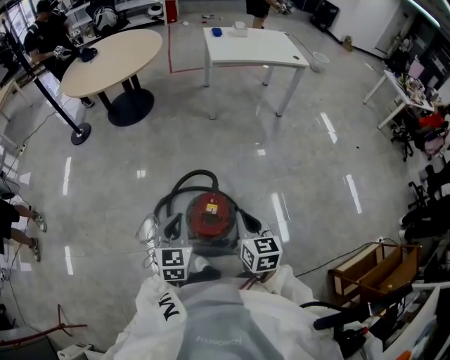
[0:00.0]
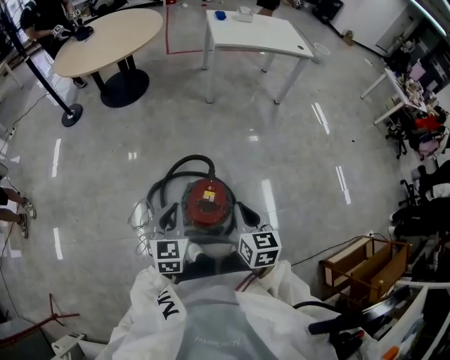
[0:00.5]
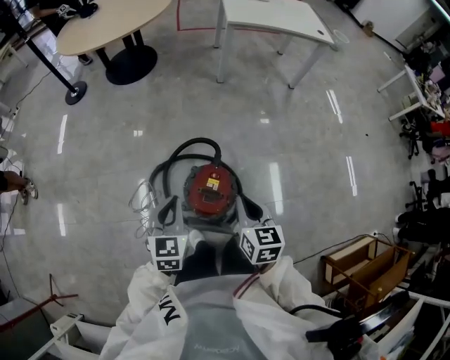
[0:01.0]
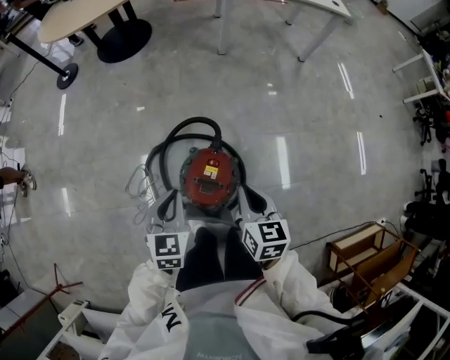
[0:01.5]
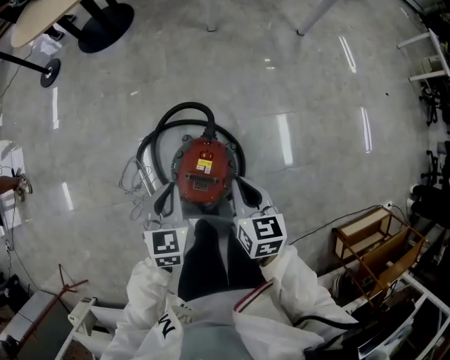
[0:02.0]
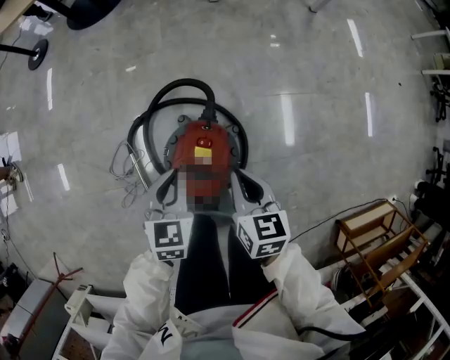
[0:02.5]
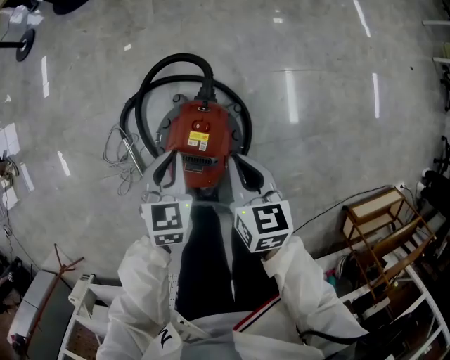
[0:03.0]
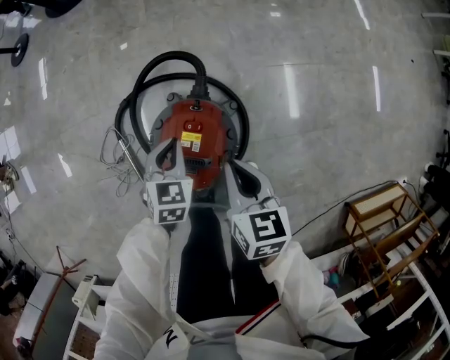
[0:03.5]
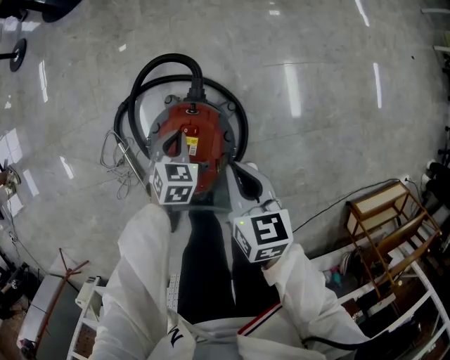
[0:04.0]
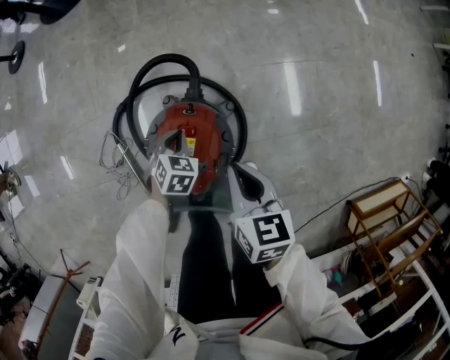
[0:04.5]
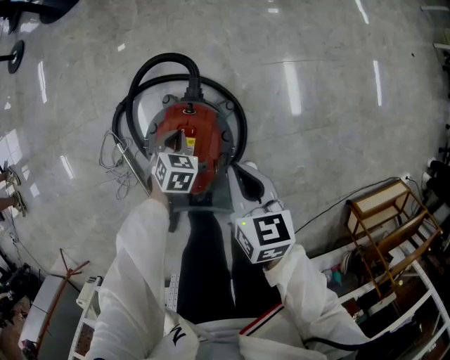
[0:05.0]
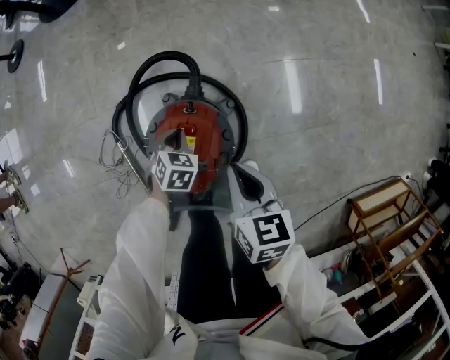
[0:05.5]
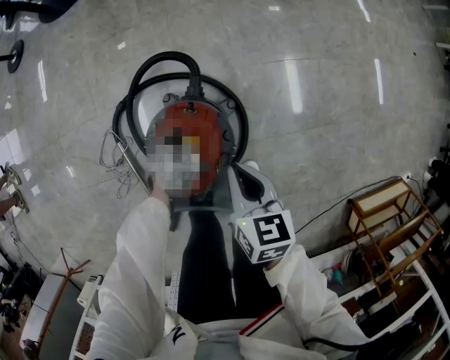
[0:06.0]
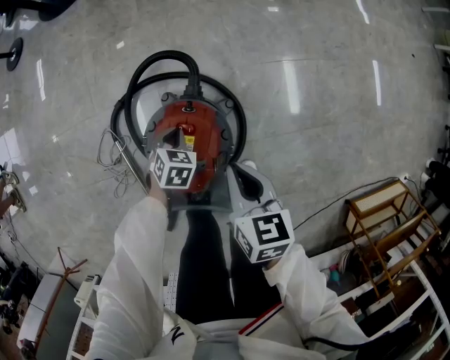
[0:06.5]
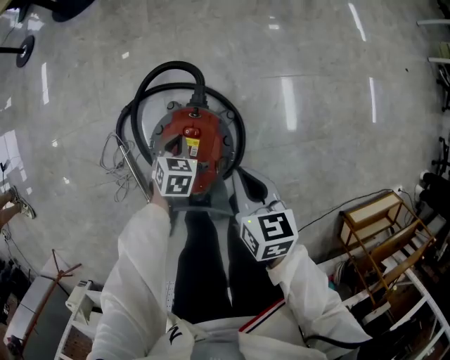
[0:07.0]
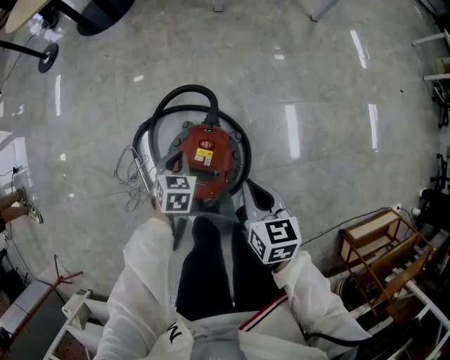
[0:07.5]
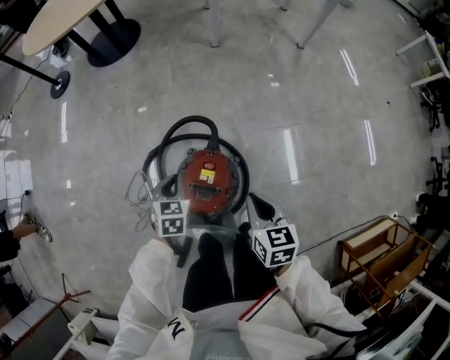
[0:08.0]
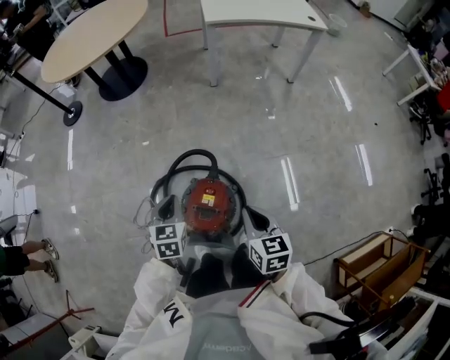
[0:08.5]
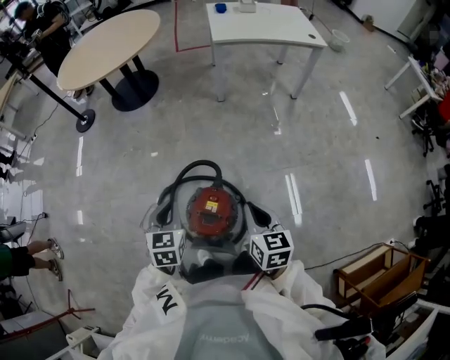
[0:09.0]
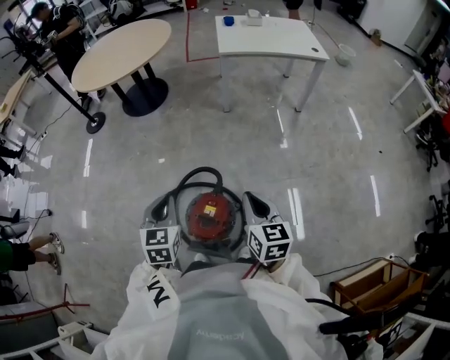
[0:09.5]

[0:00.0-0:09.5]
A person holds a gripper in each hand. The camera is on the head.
0:00.0 to 0:02.0: The two grippers go about 15 cm downward and forward.
0:02.0 to 0:04.0: The left gripper moves downward, some 25 cm, and rotates some 20 degrees. The right gripper moves downward, approximately 10 cm.
0:04.0 to 0:05.5: The left gripper heads downward, covering some 5 cm.
0:05.5 to 0:07.5: The right gripper travels upward by some 5 cm; the left gripper heads upward, covering roughly 10 cm.
0:07.5 to 0:09.5: The left gripper heads upward, covering roughly 35 cm, and swivels roughly 30 degrees, while the right gripper heads upward, covering roughly 25 cm, and changes its angle by some 20 degrees.

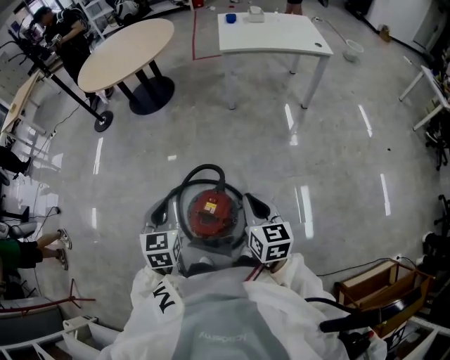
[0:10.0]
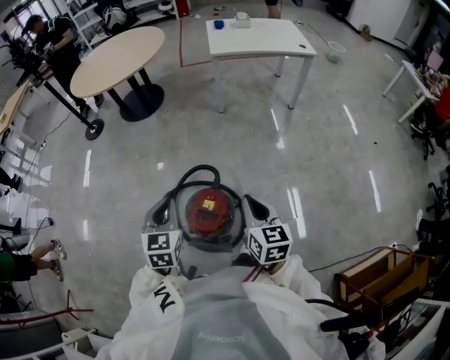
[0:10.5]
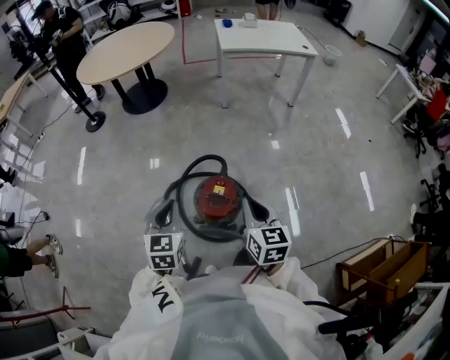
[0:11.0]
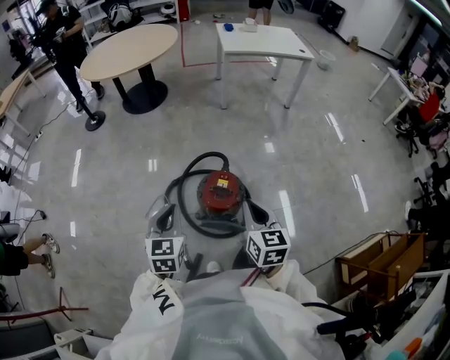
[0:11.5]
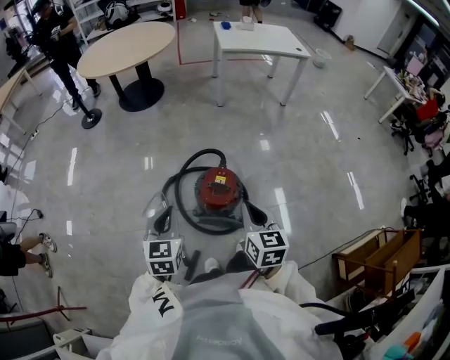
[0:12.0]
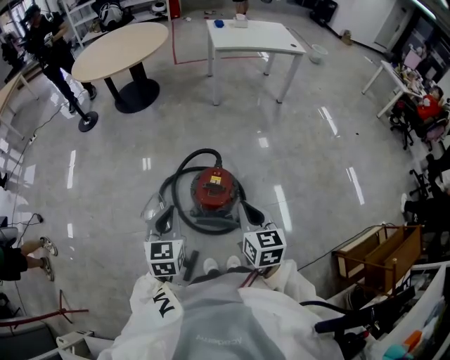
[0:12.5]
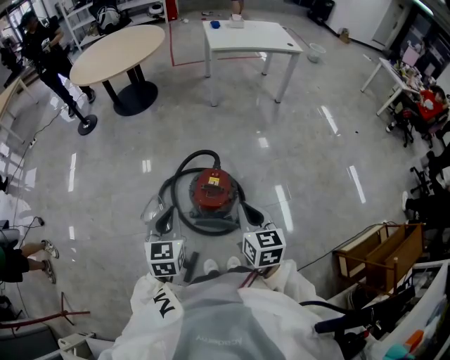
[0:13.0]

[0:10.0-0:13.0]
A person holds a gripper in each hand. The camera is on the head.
0:10.0 to 0:11.5: The grippers both shift backward and to the left by some 20 cm.
0:11.5 to 0:13.0: The grippers make only small movements.

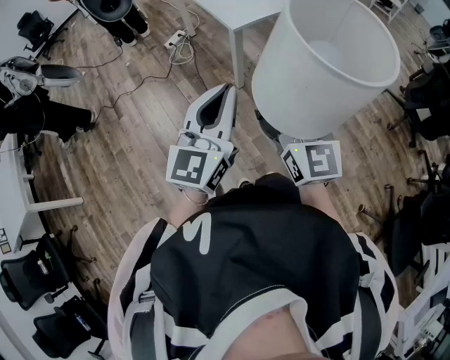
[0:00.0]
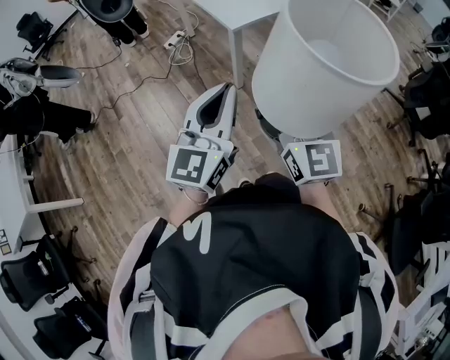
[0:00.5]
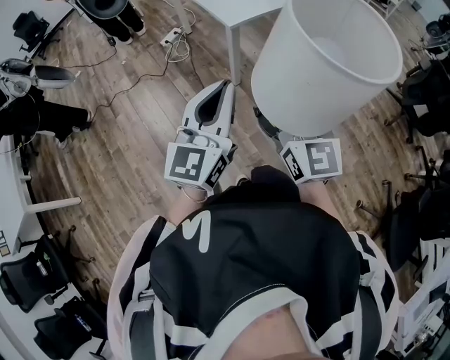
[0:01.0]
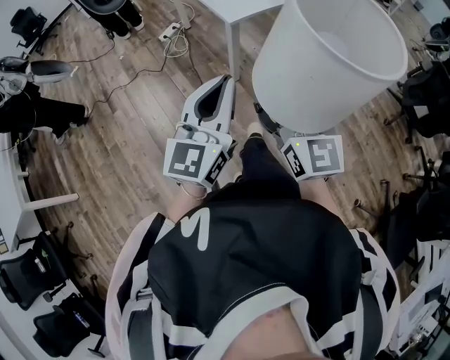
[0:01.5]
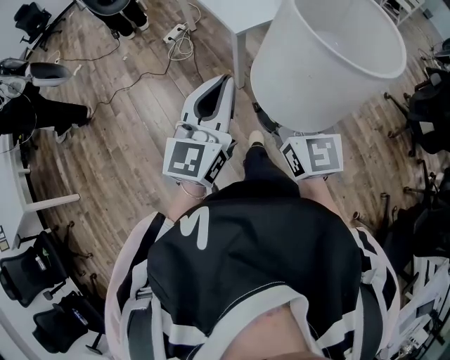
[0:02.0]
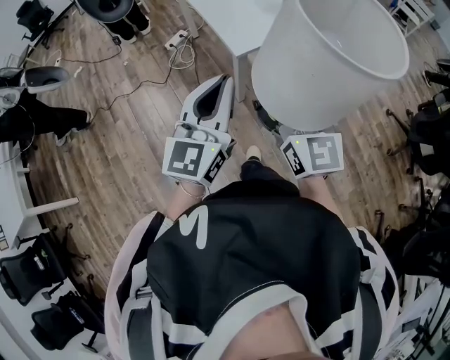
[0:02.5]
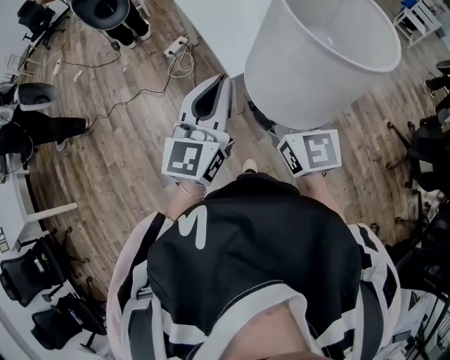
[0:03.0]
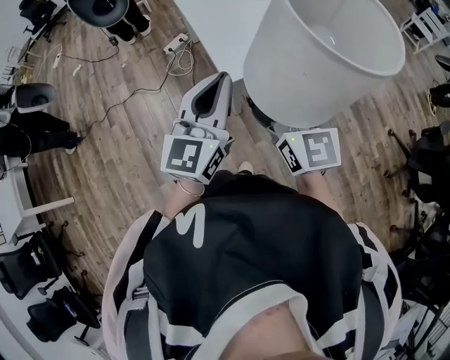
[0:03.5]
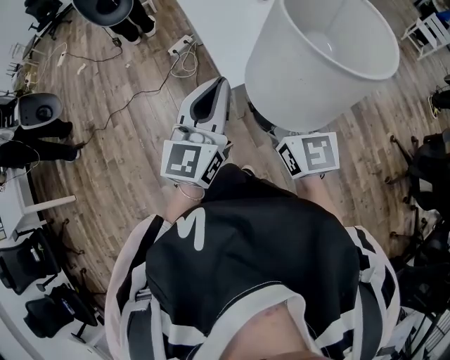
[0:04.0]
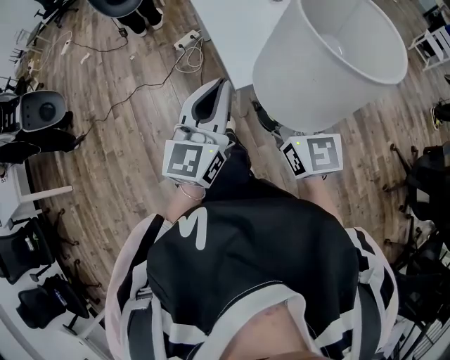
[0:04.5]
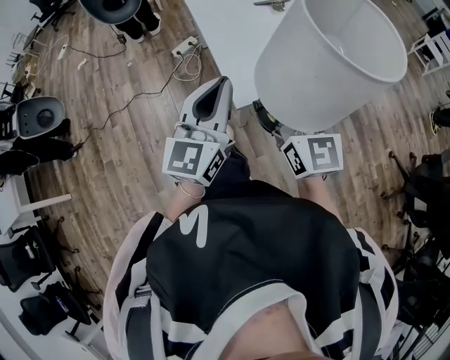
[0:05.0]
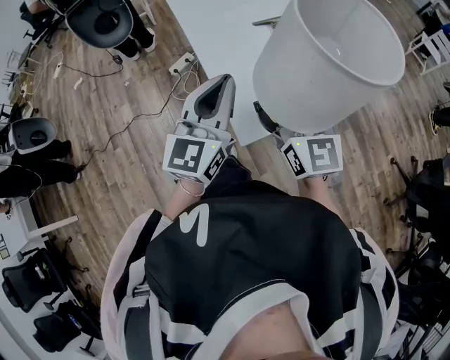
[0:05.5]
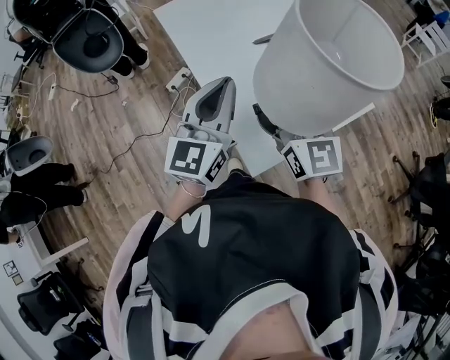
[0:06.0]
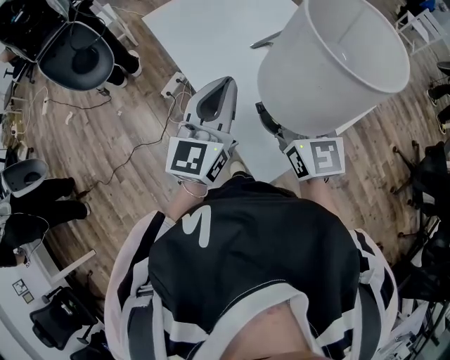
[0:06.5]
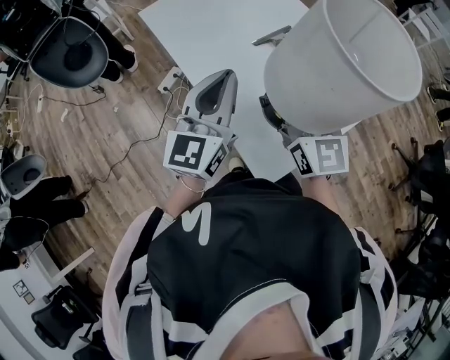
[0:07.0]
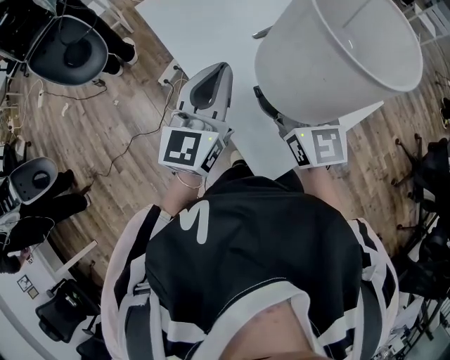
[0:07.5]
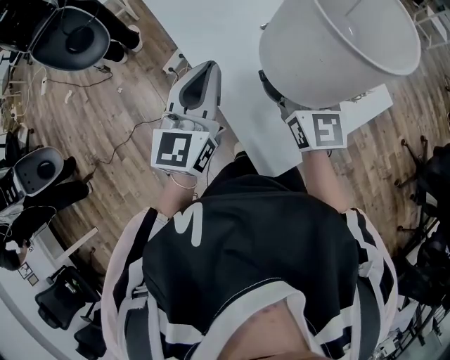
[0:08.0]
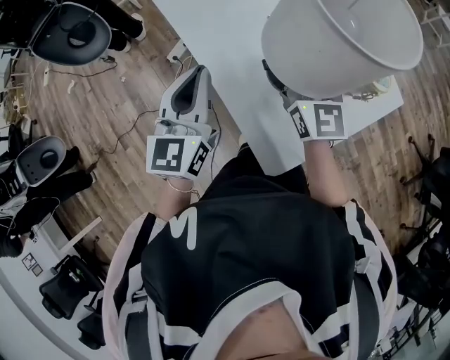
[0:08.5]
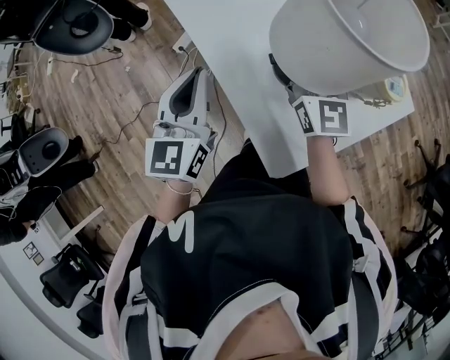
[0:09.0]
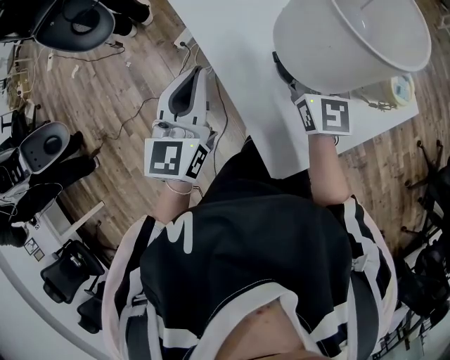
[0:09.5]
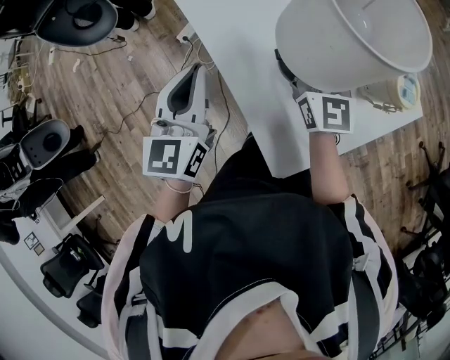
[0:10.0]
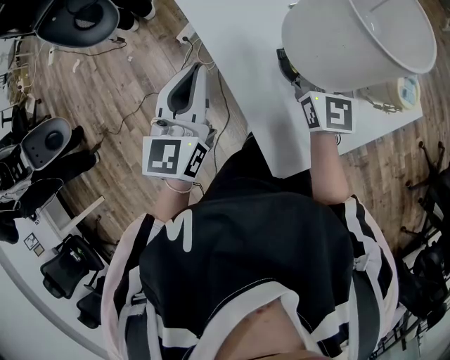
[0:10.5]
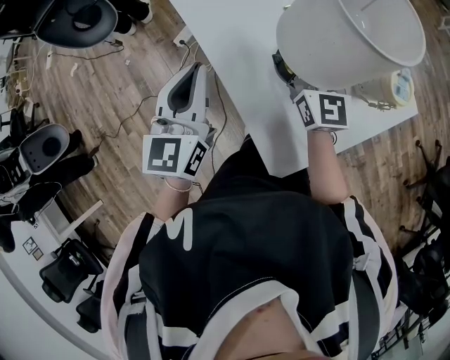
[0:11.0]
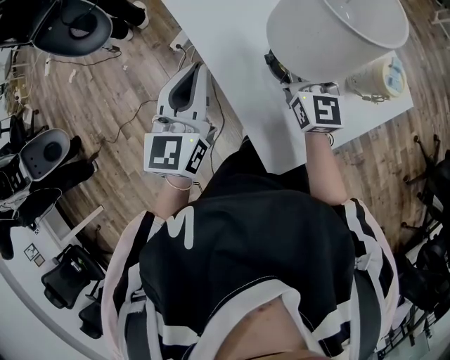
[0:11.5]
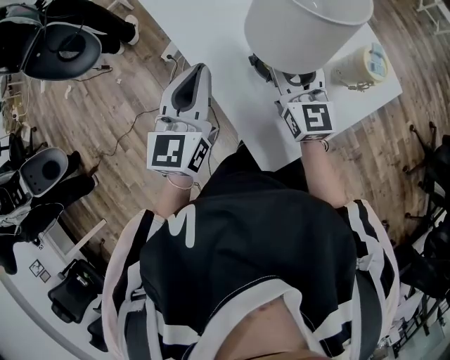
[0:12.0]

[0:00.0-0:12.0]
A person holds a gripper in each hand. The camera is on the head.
0:00.0 to 0:02.0: The two grippers go roughly 10 cm forward.
0:02.0 to 0:04.0: The two grippers go about 25 cm forward.
0:04.0 to 0:06.0: The grippers both shift forward by some 30 cm.
0:06.0 to 0:08.0: Both grippers move forward, approximately 10 cm.
0:08.0 to 0:10.0: The right gripper shifts roughly 10 cm downward and forward; the left gripper travels downward and to the left by approximately 10 cm.
0:10.0 to 0:12.0: The right gripper changes place by some 5 cm, and opens.

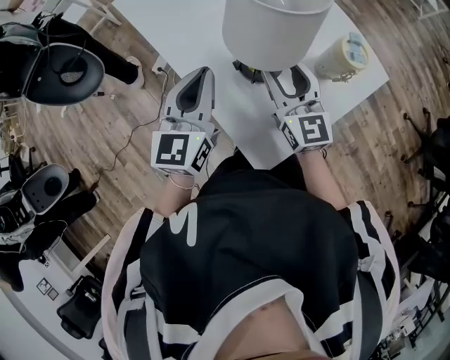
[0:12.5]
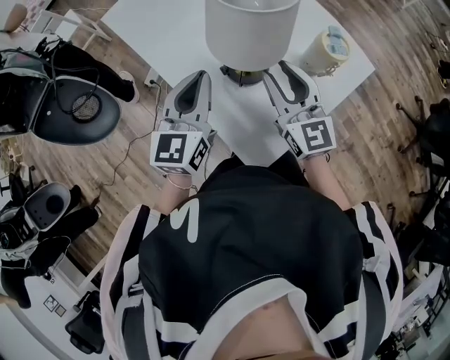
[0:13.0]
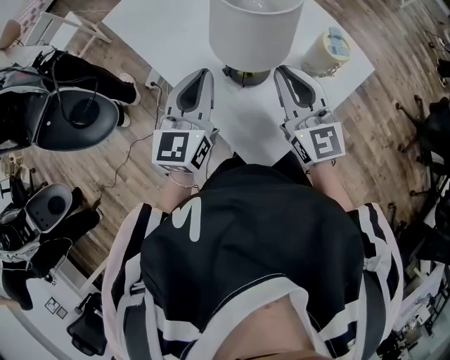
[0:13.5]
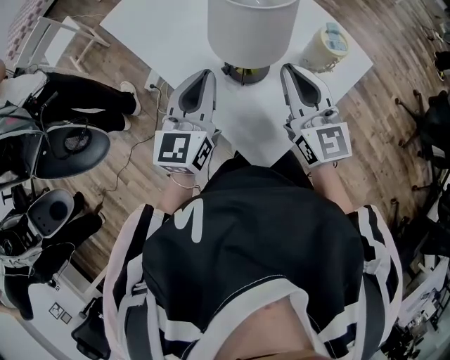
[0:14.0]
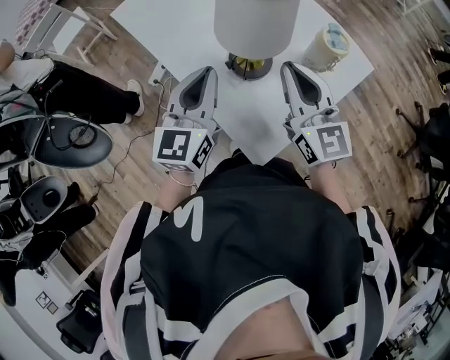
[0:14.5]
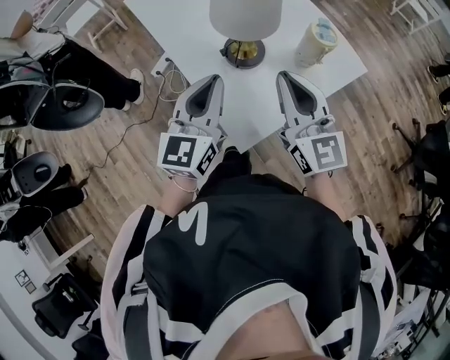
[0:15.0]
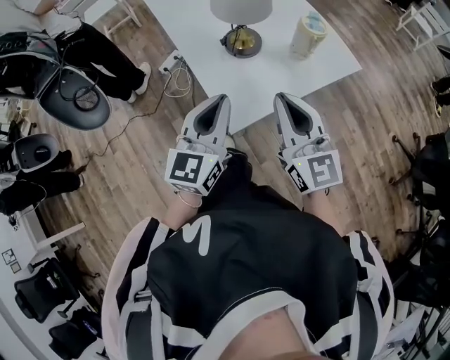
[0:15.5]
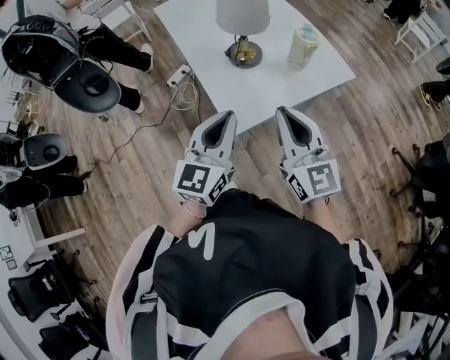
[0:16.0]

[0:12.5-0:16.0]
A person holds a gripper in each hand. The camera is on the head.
0:12.5 to 0:14.5: The right gripper goes roughly 10 cm upward and backward, and closes its fingers.
0:14.5 to 0:16.0: Both grippers move backward, approximately 25 cm.
